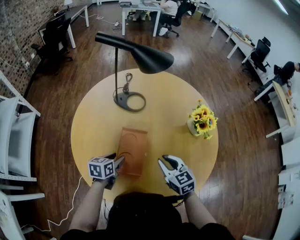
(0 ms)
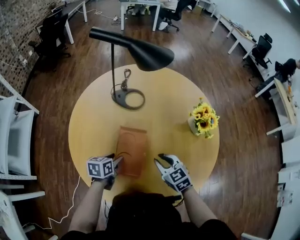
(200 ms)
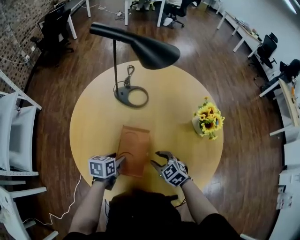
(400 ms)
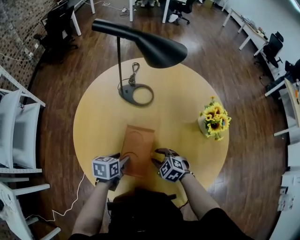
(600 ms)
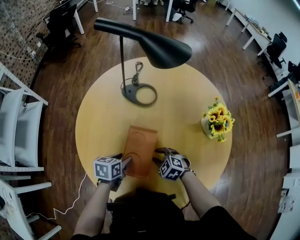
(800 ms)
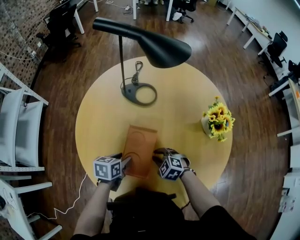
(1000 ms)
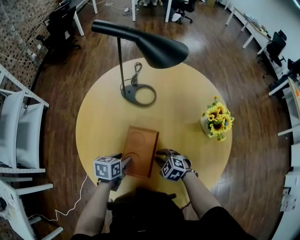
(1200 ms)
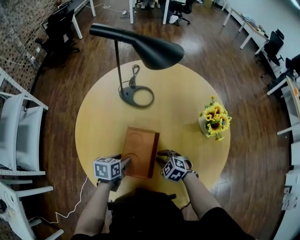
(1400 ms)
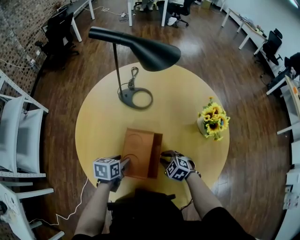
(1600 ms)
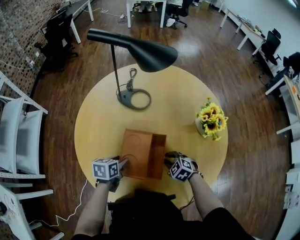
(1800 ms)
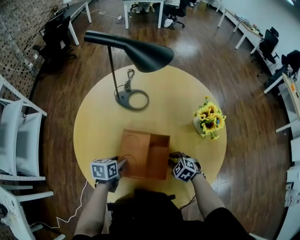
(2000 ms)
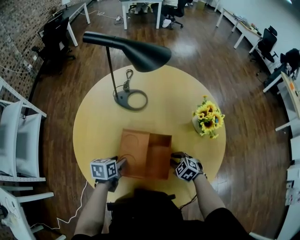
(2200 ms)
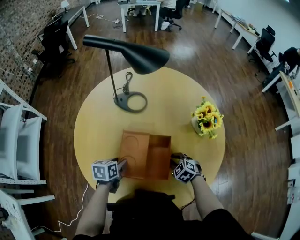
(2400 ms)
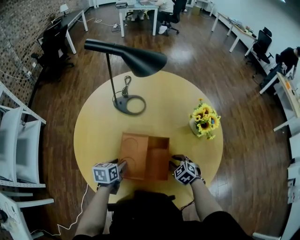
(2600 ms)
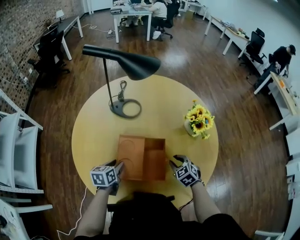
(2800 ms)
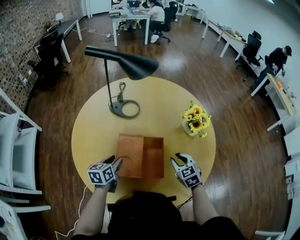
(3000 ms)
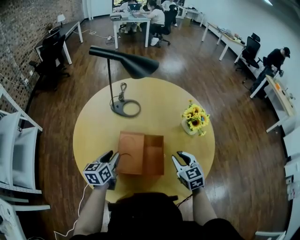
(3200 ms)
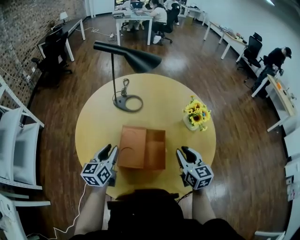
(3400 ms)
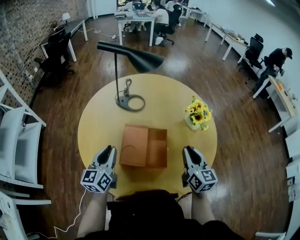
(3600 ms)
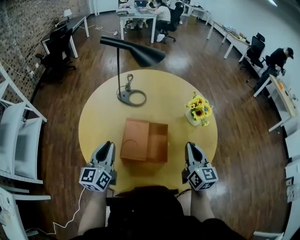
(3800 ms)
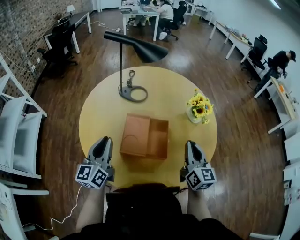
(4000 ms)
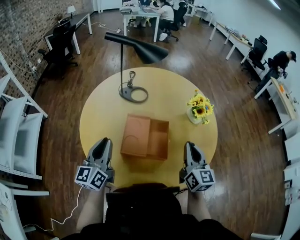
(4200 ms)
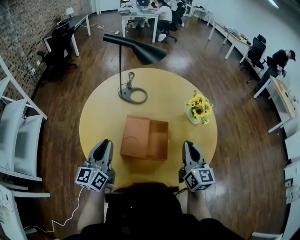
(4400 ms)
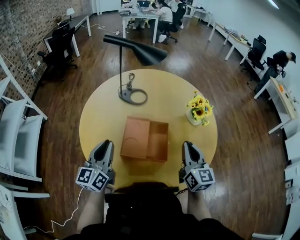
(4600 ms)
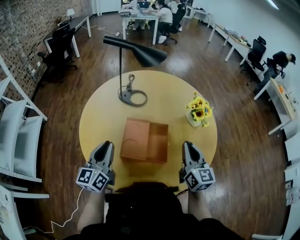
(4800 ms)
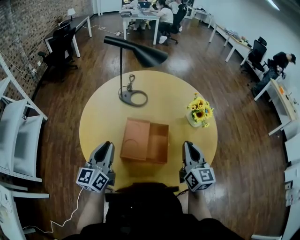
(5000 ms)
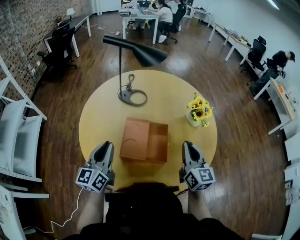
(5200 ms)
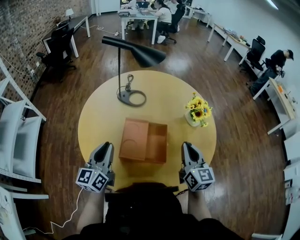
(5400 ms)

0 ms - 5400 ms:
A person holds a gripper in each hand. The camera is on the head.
0 ms - 1400 ms: The right gripper shifts some 15 cm downward, and swivels roughly 40 degrees.
1400 ms - 2800 ms: The right gripper is displaced to the right by some 10 cm, and turns by about 30 degrees.
2800 ms - 4000 ms: The left gripper travels upward and backward by about 20 cm, angles its fingers upward, by roughly 40 degrees, and closes up; the right gripper is displaced upward by some 25 cm, points its fingers some 50 degrees further upward, and closes.
4000 ms - 5400 ms: The grippers move only a little.

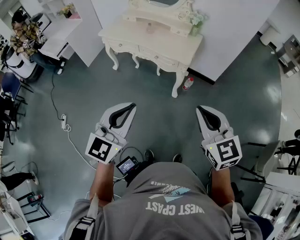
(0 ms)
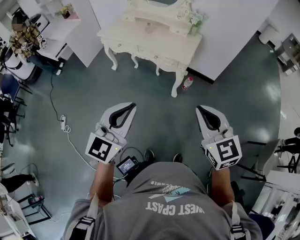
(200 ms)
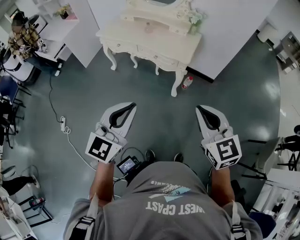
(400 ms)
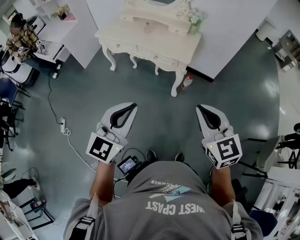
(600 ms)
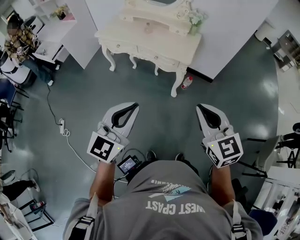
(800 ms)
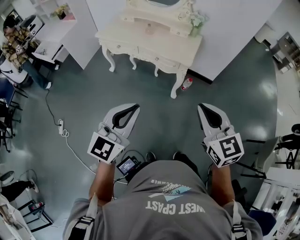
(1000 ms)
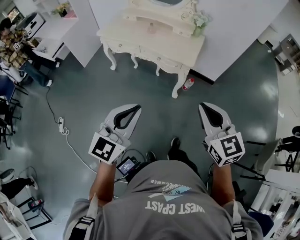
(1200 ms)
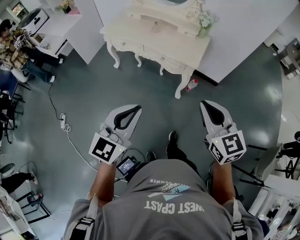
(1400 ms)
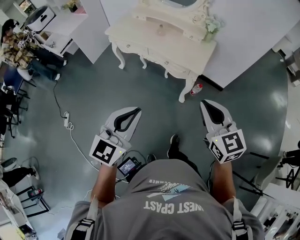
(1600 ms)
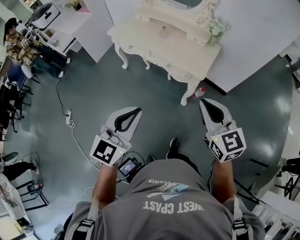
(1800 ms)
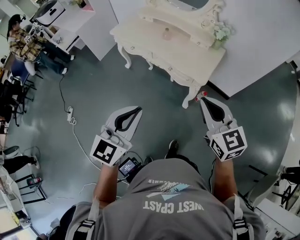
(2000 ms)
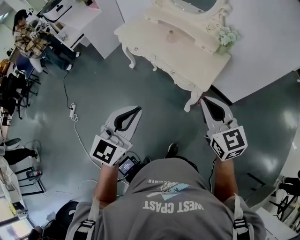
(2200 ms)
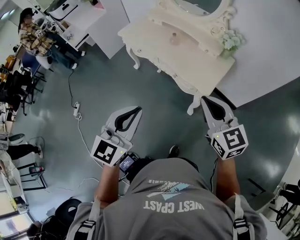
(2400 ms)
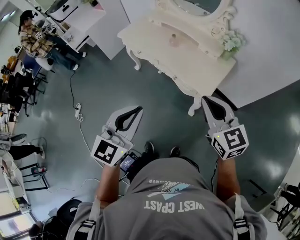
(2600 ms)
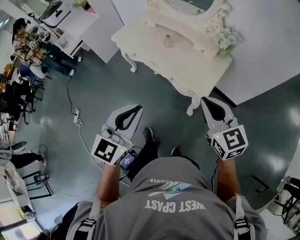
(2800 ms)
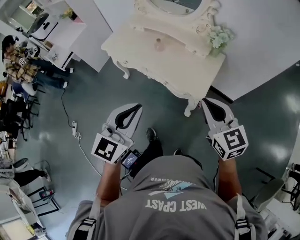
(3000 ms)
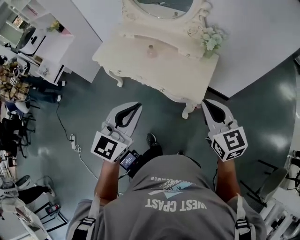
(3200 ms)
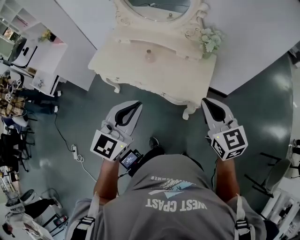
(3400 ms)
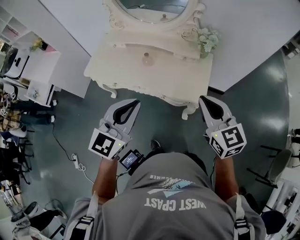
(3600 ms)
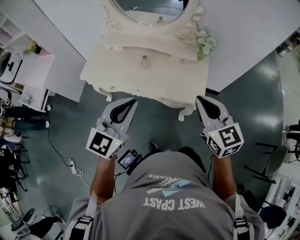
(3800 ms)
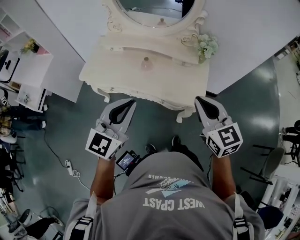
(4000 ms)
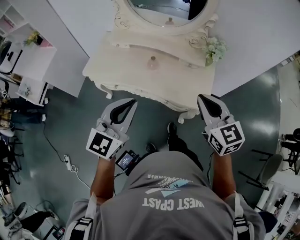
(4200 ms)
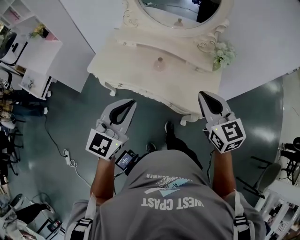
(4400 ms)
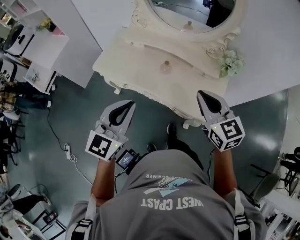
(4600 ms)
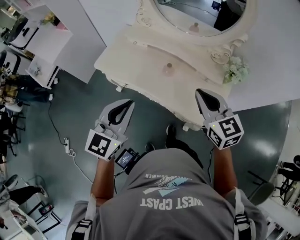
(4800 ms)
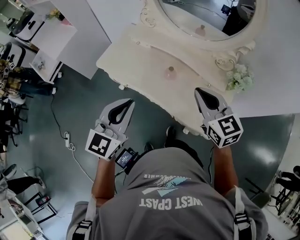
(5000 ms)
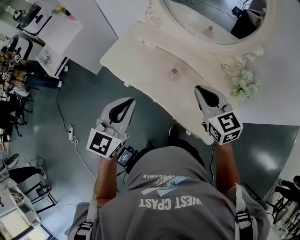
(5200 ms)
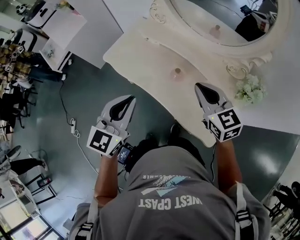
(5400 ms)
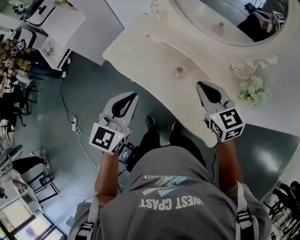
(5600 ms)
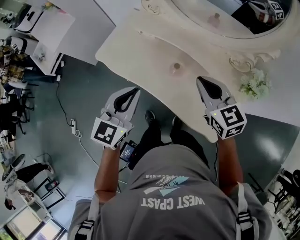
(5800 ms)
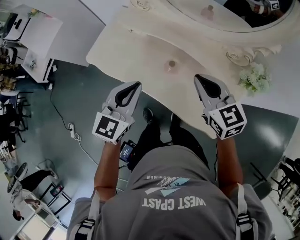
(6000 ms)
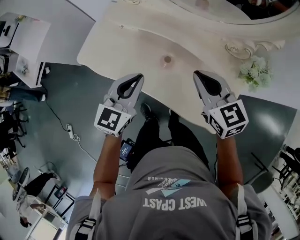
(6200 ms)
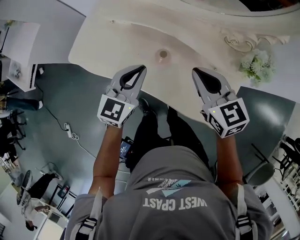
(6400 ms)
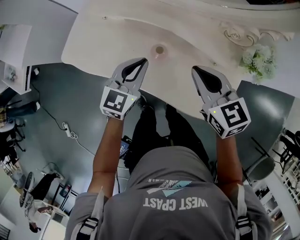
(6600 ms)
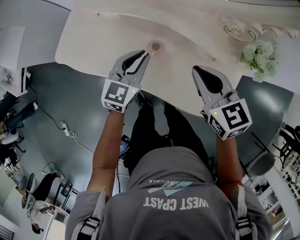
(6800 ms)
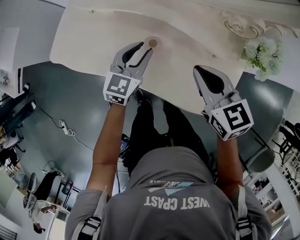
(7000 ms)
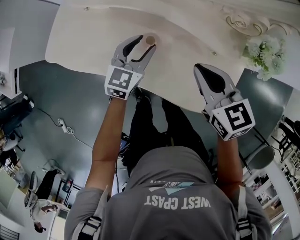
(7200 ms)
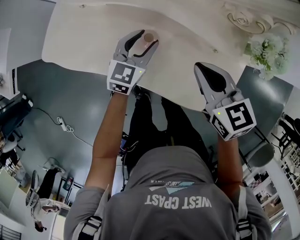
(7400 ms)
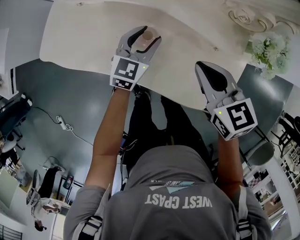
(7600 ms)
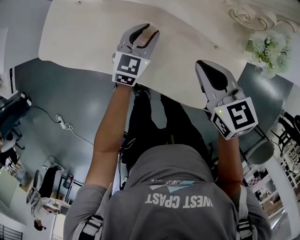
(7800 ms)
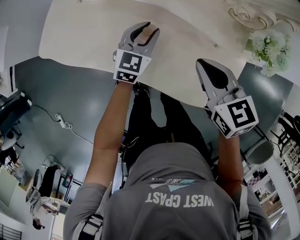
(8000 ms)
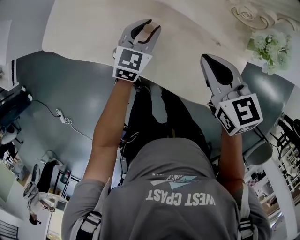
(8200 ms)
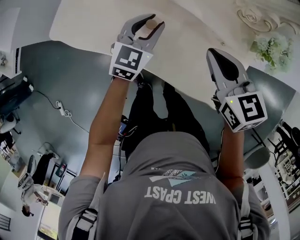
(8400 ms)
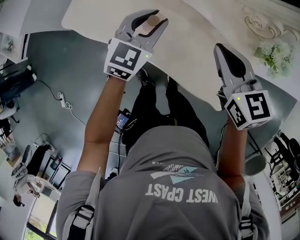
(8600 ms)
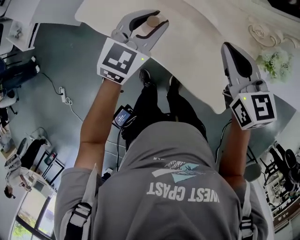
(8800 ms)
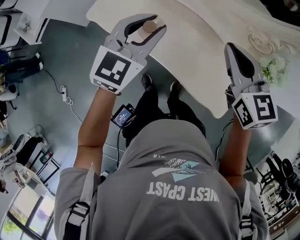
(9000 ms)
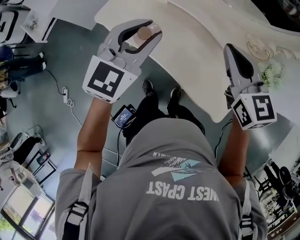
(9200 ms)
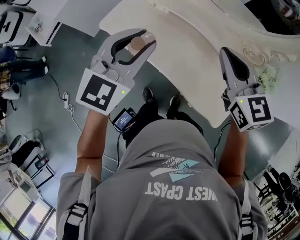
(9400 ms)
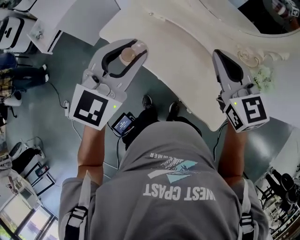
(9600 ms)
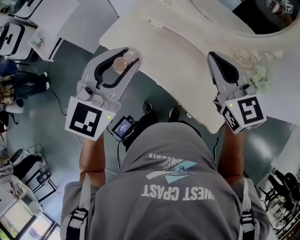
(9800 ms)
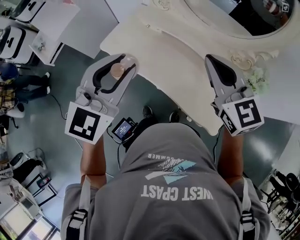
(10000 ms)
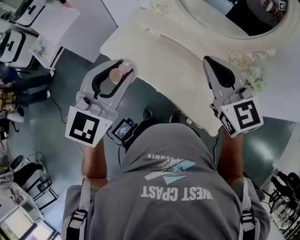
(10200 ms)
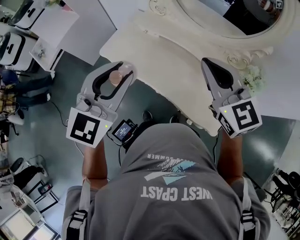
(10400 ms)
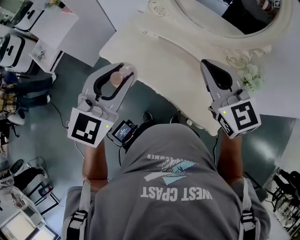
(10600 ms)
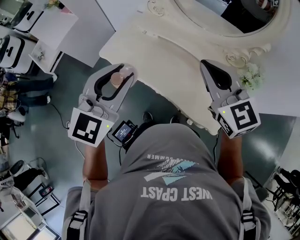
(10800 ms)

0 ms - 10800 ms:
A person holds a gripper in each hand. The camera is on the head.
0 ms - 1600 ms: Both grippers travel together forward, about 10 cm.
1600 ms - 3000 ms: The two grippers go approximately 25 cm forward.
3000 ms - 4600 ms: The grippers both shift to the left and forward by some 30 cm.
4600 ms - 6200 ms: The two grippers go approximately 25 cm forward and downward.
6200 ms - 7800 ms: The left gripper shifts some 25 cm downward, forward and to the right, and opens up. The right gripper heads downward, covering approximately 10 cm.
7800 ms - 9200 ms: The left gripper heads upward and to the left, covering some 30 cm. The right gripper heads upward and to the left, covering about 20 cm, and swivels some 20 degrees.
9200 ms - 10800 ms: The right gripper moves upward and backward, roughly 10 cm. The left gripper travels backward and upward by roughly 15 cm.

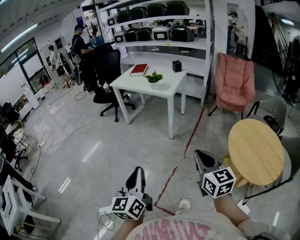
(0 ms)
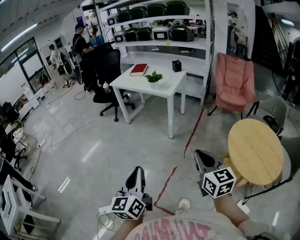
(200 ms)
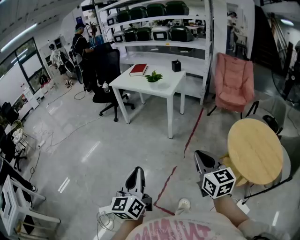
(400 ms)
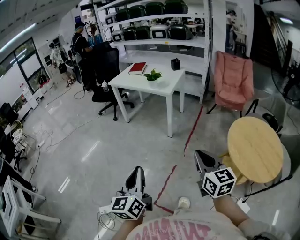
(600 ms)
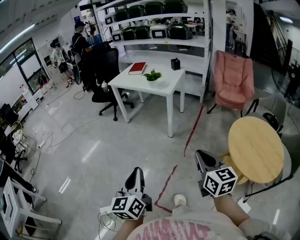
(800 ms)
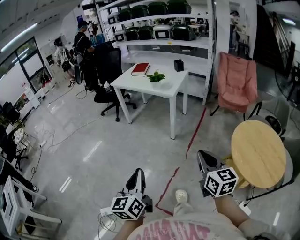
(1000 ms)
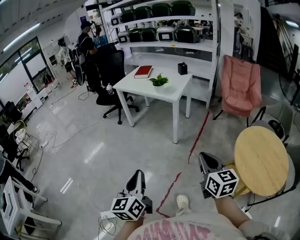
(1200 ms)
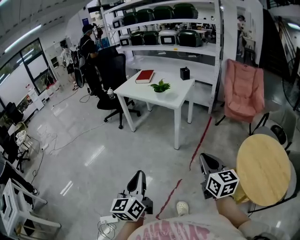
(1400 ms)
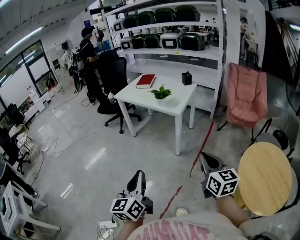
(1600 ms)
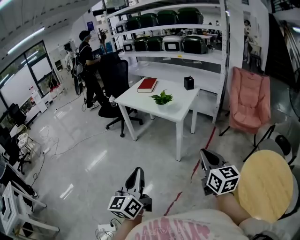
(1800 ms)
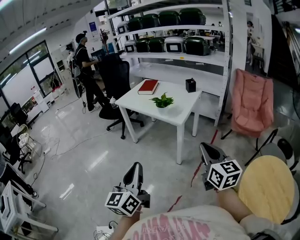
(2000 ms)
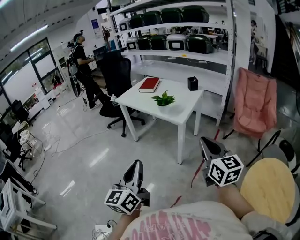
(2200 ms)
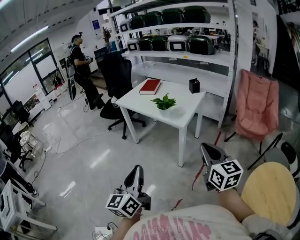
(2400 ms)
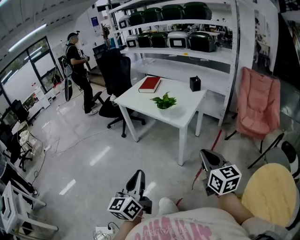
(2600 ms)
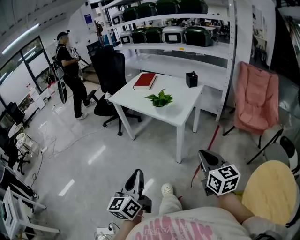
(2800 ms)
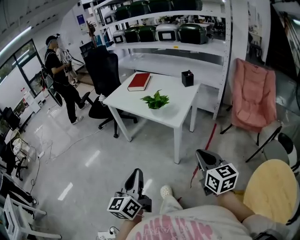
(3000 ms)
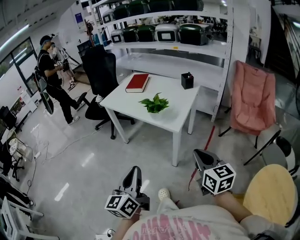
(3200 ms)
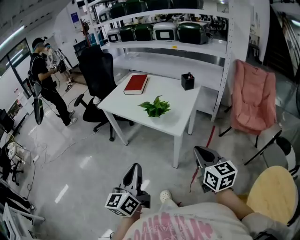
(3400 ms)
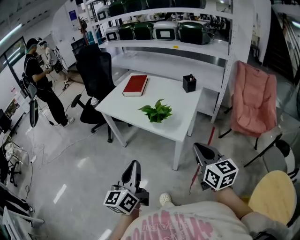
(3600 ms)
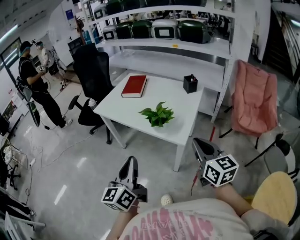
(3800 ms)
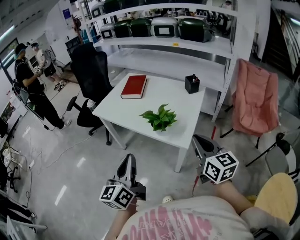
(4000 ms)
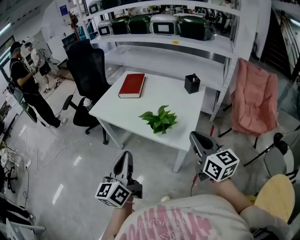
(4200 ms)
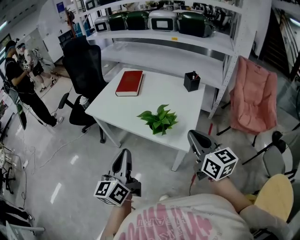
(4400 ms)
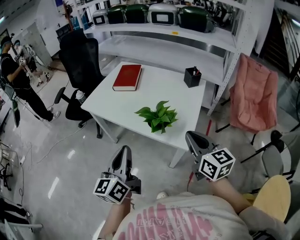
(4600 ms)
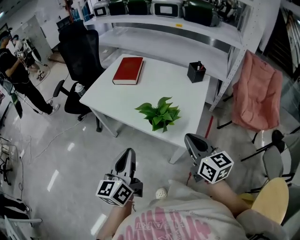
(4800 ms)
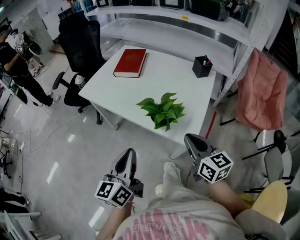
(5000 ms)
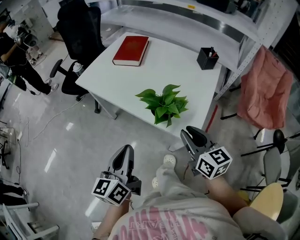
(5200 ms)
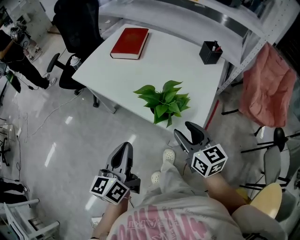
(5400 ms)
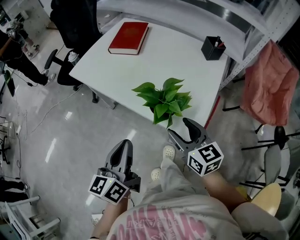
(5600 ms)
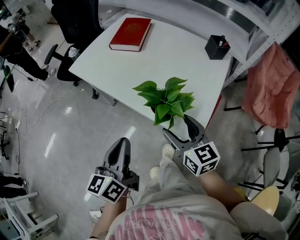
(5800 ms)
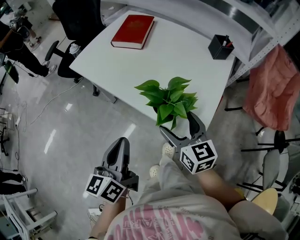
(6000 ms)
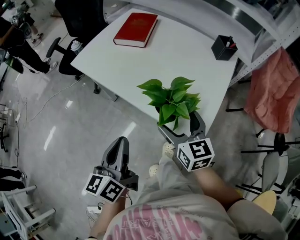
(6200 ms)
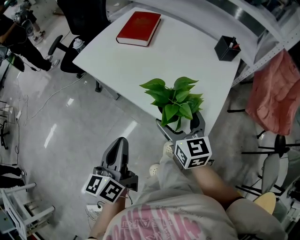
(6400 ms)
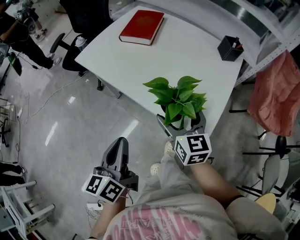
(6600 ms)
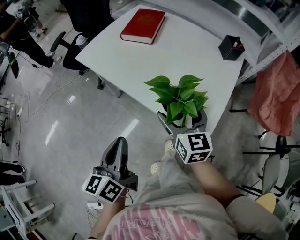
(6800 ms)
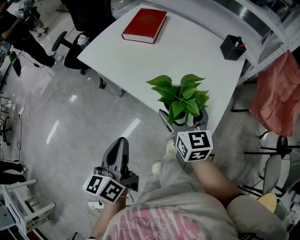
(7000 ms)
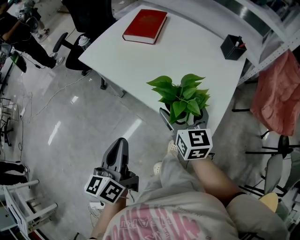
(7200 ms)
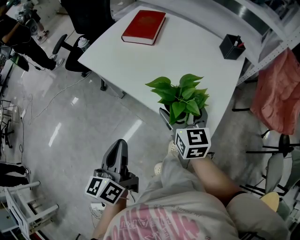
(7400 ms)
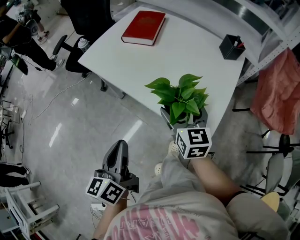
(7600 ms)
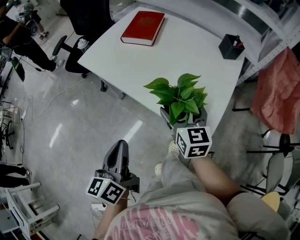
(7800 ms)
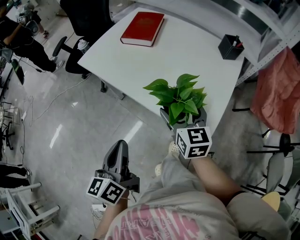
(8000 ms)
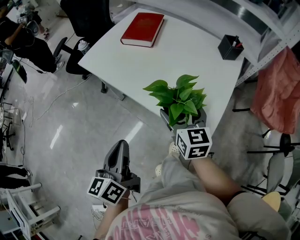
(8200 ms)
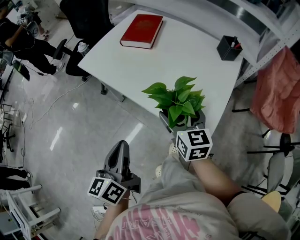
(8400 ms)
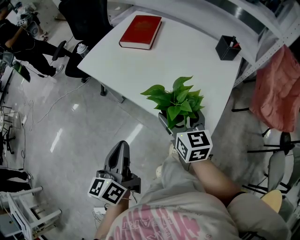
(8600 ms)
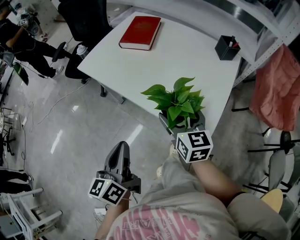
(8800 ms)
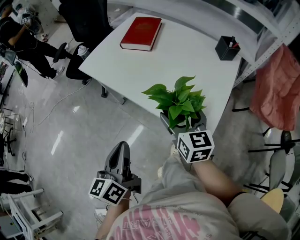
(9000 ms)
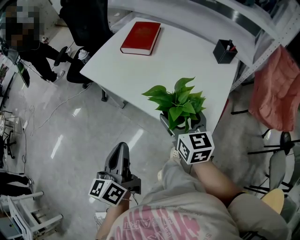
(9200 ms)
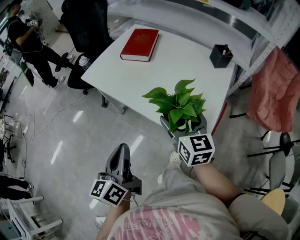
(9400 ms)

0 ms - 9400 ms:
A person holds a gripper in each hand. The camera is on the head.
0 ms - 1600 ms: The two grippers go approximately 20 cm forward.
1600 ms - 3200 ms: The grippers both shift forward by approximately 30 cm.
3200 ms - 4800 ms: The two grippers go roughly 35 cm forward.
4800 ms - 6200 ms: The left gripper goes roughly 10 cm downward and forward; the right gripper is displaced forward, downward and to the left by approximately 20 cm, and opens.
6200 ms - 7800 ms: The grippers make only small movements.
7800 ms - 9400 ms: The right gripper goes some 5 cm upward.
